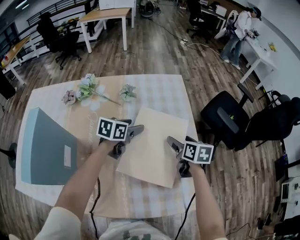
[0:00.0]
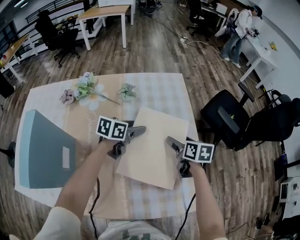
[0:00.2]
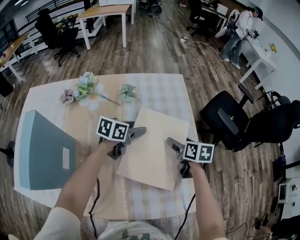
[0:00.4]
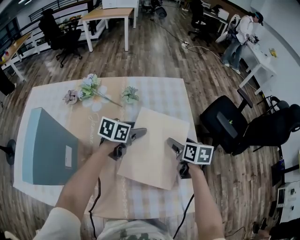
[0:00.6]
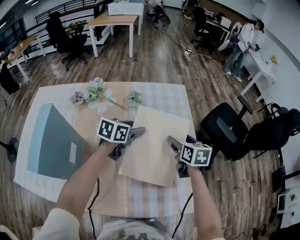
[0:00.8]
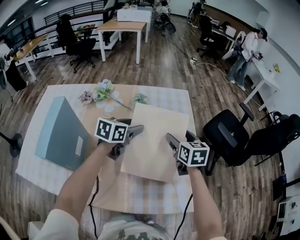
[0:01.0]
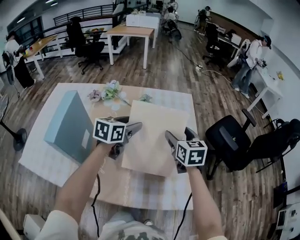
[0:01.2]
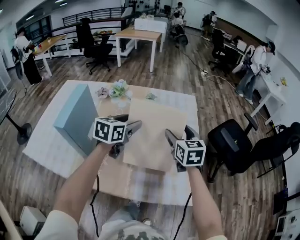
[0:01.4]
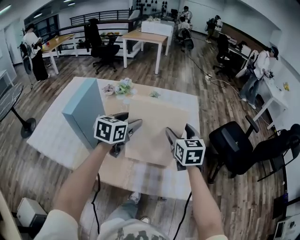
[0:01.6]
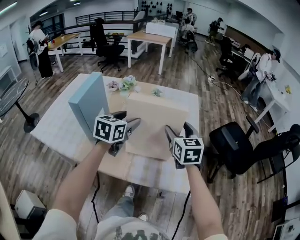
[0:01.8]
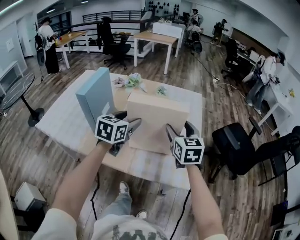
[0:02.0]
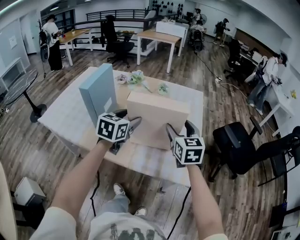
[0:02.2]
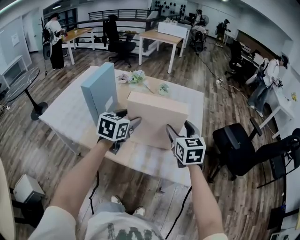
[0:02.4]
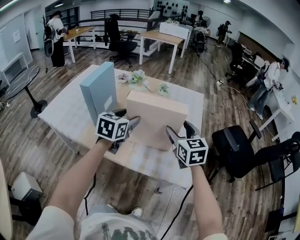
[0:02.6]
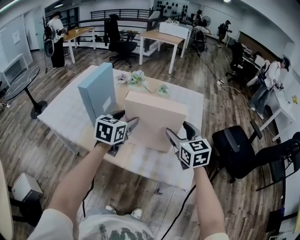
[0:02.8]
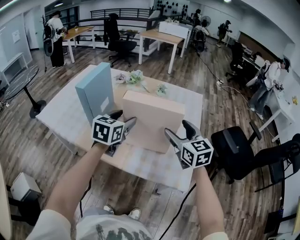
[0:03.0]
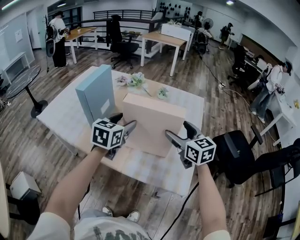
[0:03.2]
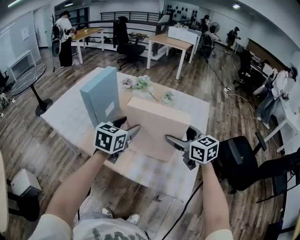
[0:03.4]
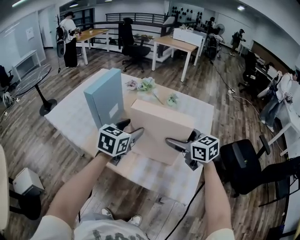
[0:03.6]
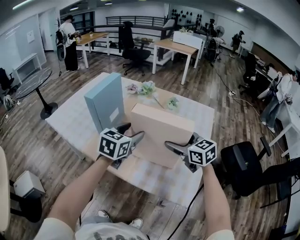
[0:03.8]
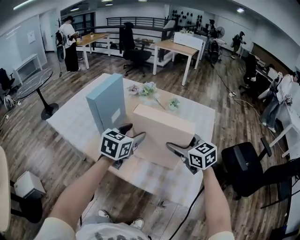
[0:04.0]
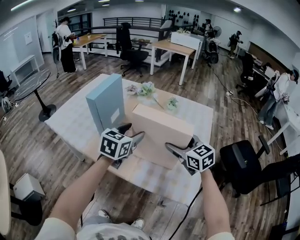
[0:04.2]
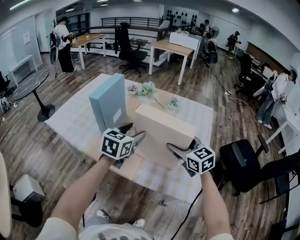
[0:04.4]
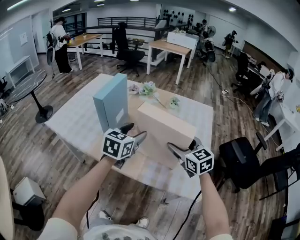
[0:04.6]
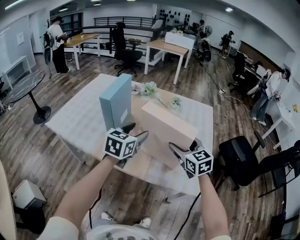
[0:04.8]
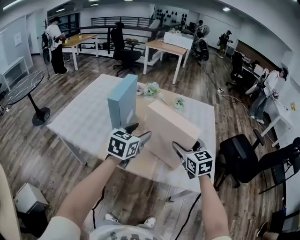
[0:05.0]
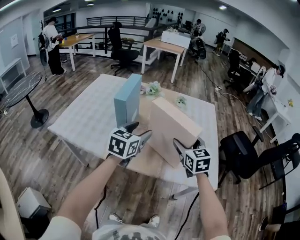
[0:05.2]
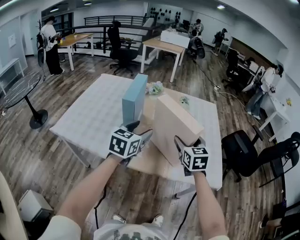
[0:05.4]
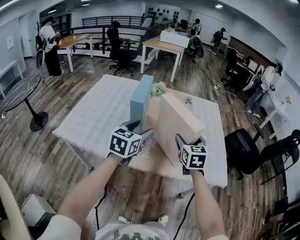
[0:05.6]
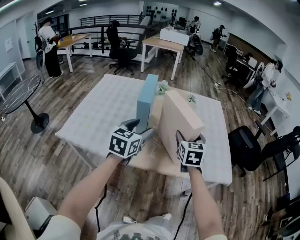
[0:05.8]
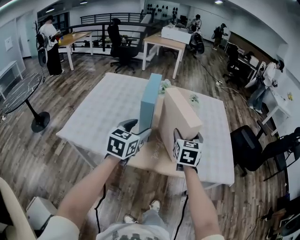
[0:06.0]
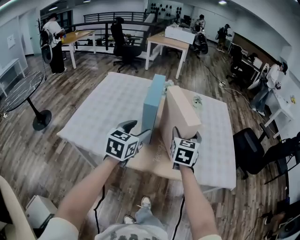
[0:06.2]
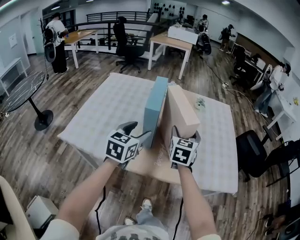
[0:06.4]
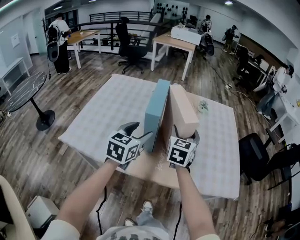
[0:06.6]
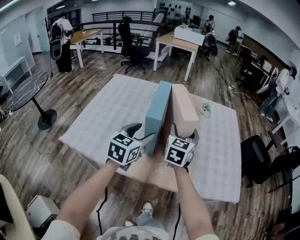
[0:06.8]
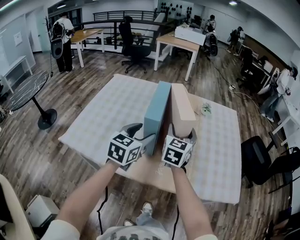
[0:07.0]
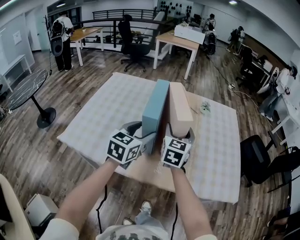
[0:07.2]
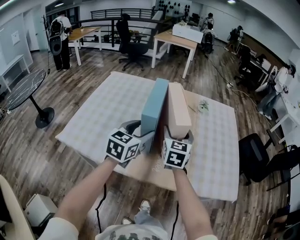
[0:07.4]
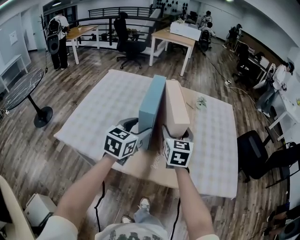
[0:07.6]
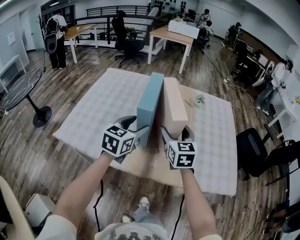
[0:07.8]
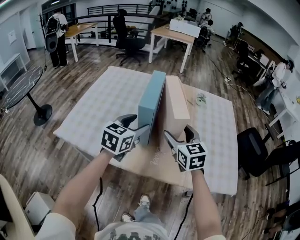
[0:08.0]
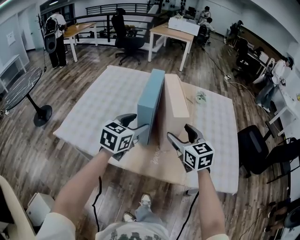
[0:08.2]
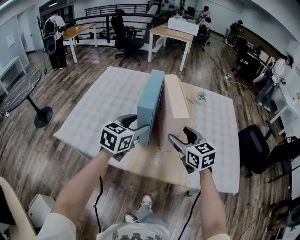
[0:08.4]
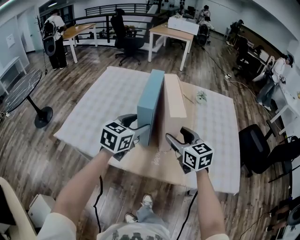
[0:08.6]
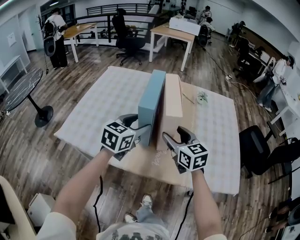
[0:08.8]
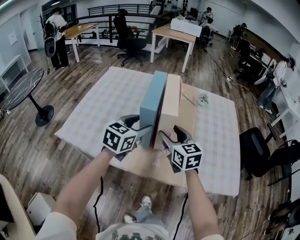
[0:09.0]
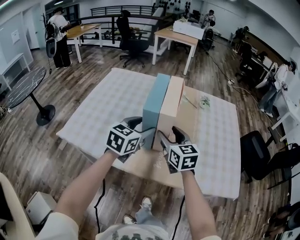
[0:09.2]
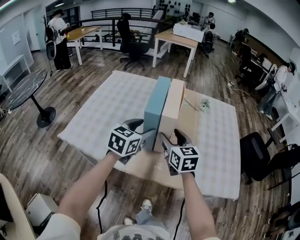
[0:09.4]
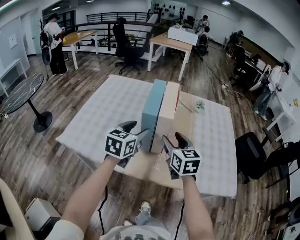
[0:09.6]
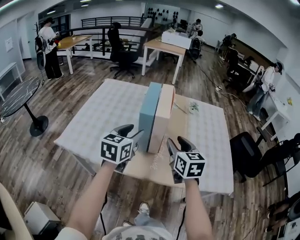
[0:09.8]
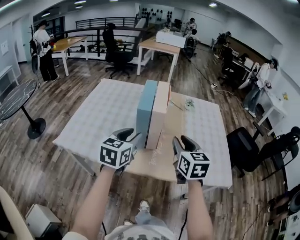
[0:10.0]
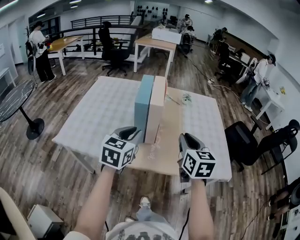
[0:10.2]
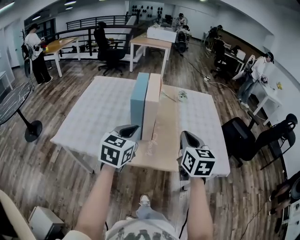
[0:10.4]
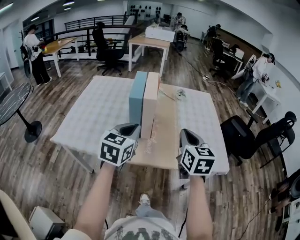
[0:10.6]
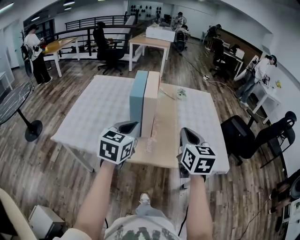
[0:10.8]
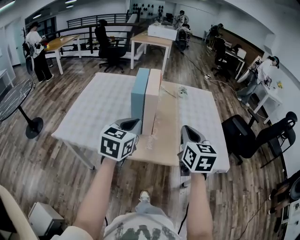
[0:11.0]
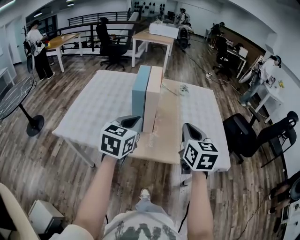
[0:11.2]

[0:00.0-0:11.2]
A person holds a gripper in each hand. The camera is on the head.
0:00.0 to 0:01.6: The right gripper moves upward and backward, roughly 20 cm, and changes its angle by approximately 40 degrees. Meanwhile the left gripper heads backward and upward, covering some 25 cm, and turns by approximately 30 degrees.
0:01.6 to 0:03.2: The left gripper heads backward, covering roughly 10 cm, while the right gripper goes approximately 5 cm backward, and rotates roughly 30 degrees.
0:03.2 to 0:04.8: The left gripper travels to the left by some 5 cm, while the right gripper moves to the left, roughly 10 cm.
0:04.8 to 0:06.4: The grippers both shift to the left by about 20 cm. The right gripper swivels some 40 degrees.
0:06.4 to 0:08.0: The right gripper rotates some 30 degrees.
0:08.0 to 0:09.6: There are only small adjustments of the grippers.
0:09.6 to 0:11.2: The right gripper travels backward, to the right and upward by about 20 cm, and closes its fingers, while the left gripper travels backward and to the right by roughly 15 cm, and closes its fingers.

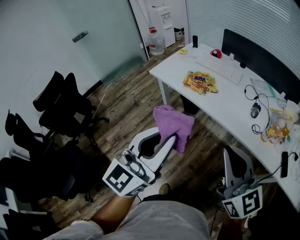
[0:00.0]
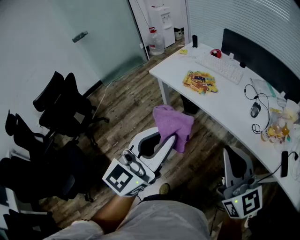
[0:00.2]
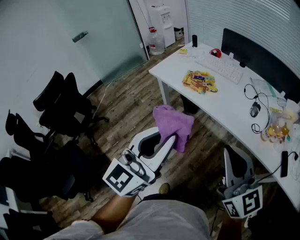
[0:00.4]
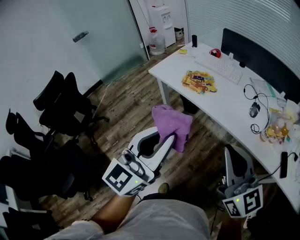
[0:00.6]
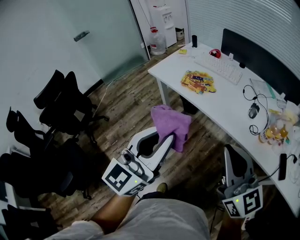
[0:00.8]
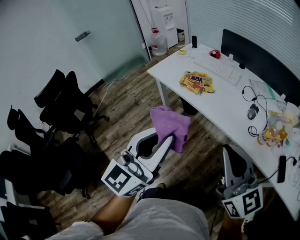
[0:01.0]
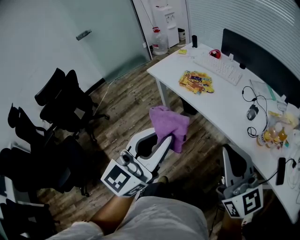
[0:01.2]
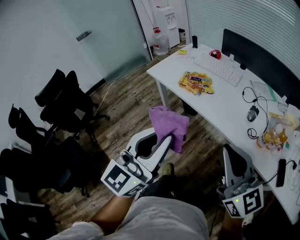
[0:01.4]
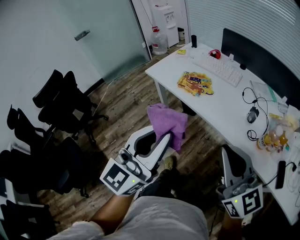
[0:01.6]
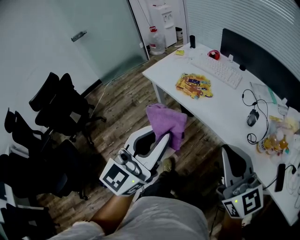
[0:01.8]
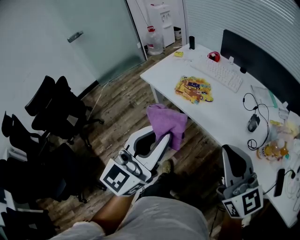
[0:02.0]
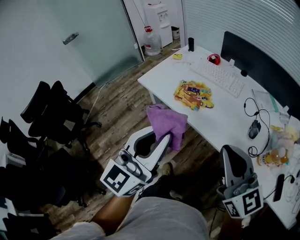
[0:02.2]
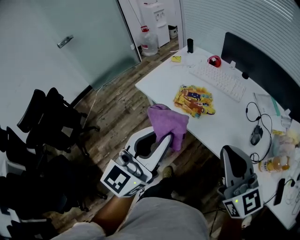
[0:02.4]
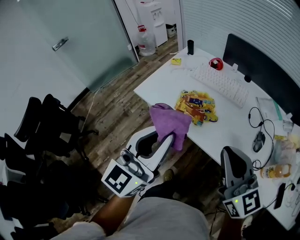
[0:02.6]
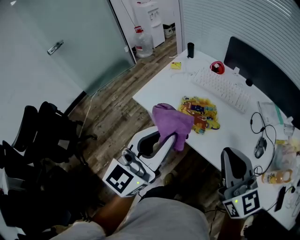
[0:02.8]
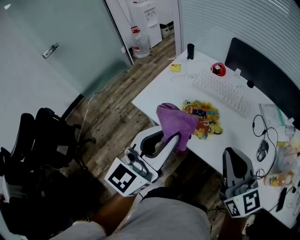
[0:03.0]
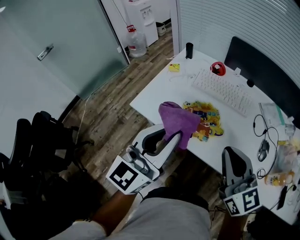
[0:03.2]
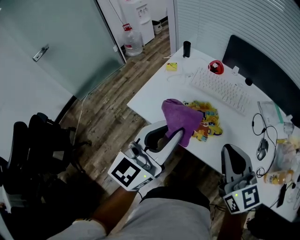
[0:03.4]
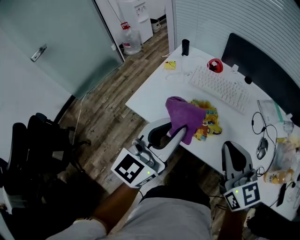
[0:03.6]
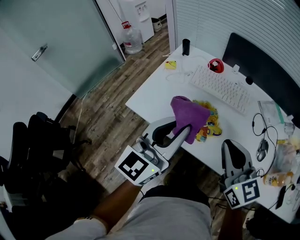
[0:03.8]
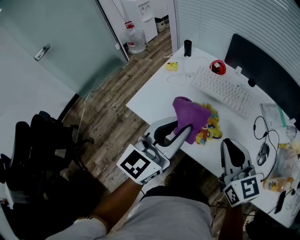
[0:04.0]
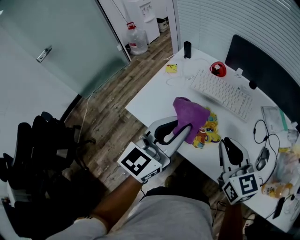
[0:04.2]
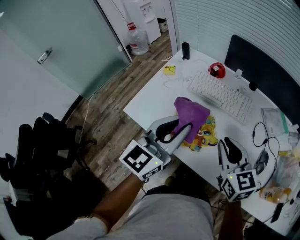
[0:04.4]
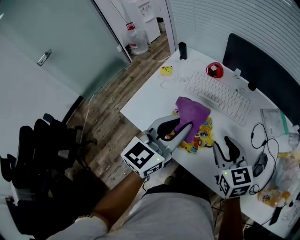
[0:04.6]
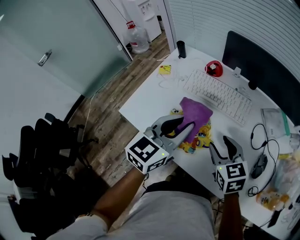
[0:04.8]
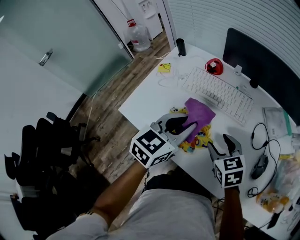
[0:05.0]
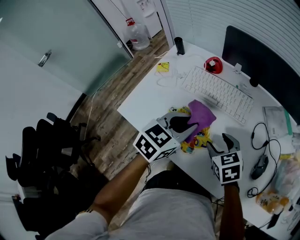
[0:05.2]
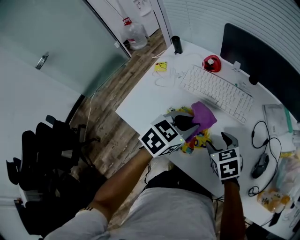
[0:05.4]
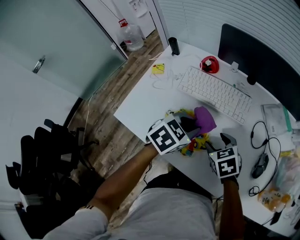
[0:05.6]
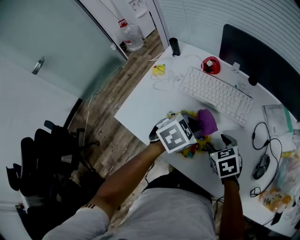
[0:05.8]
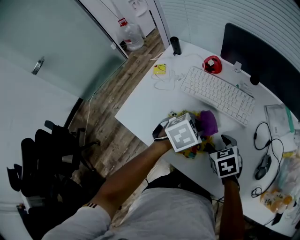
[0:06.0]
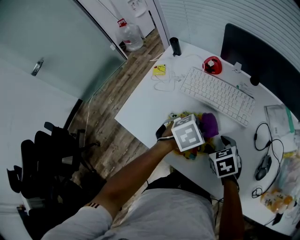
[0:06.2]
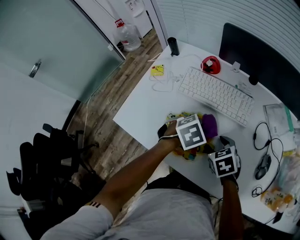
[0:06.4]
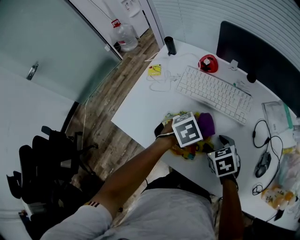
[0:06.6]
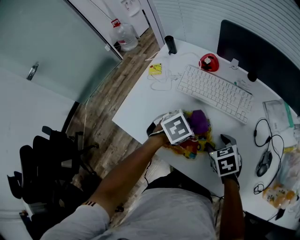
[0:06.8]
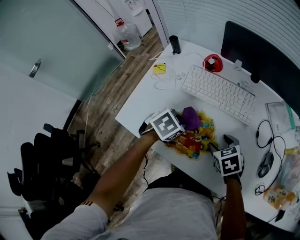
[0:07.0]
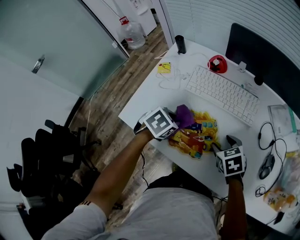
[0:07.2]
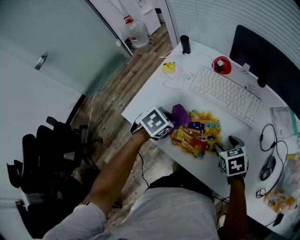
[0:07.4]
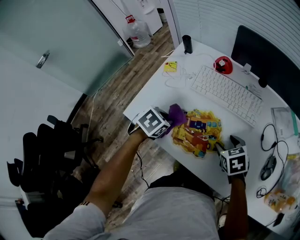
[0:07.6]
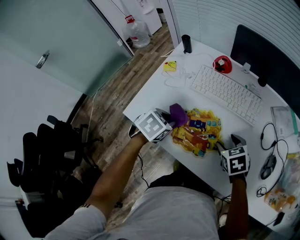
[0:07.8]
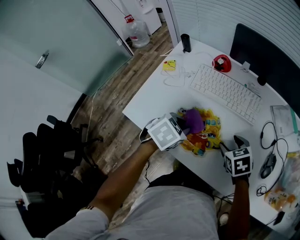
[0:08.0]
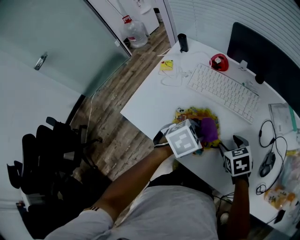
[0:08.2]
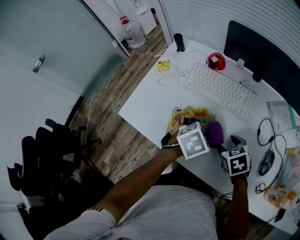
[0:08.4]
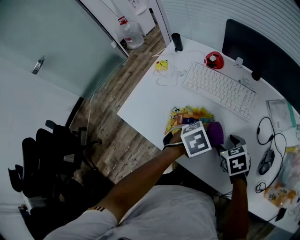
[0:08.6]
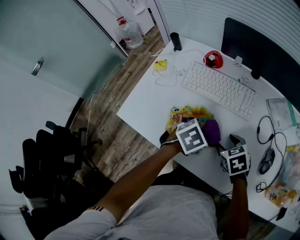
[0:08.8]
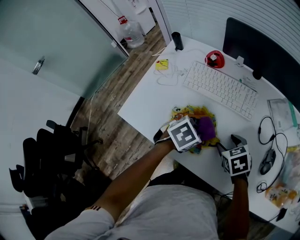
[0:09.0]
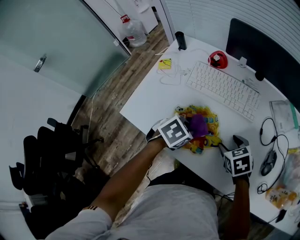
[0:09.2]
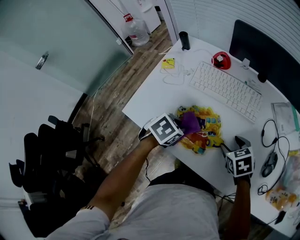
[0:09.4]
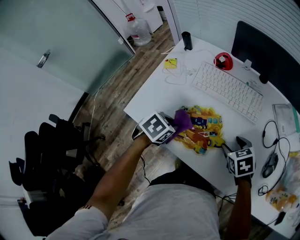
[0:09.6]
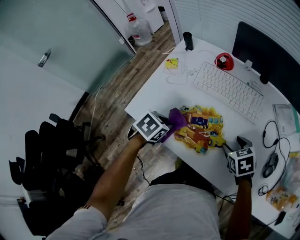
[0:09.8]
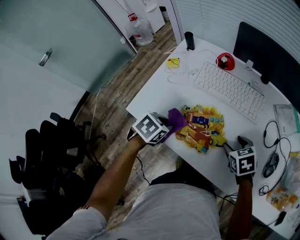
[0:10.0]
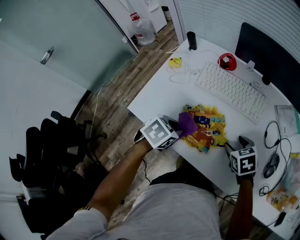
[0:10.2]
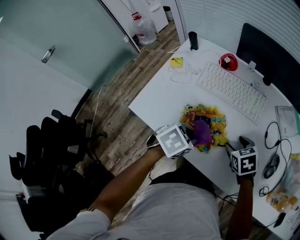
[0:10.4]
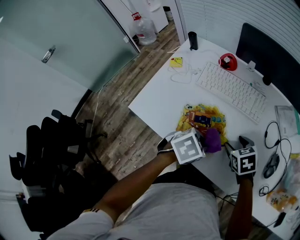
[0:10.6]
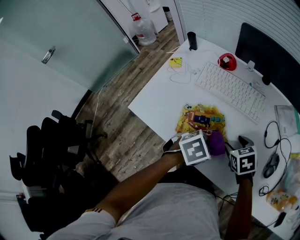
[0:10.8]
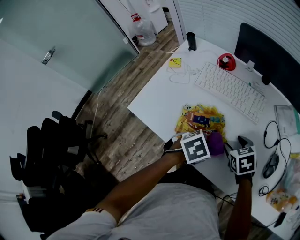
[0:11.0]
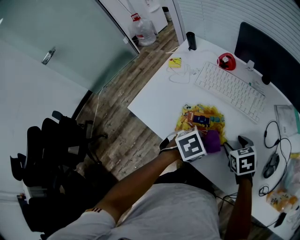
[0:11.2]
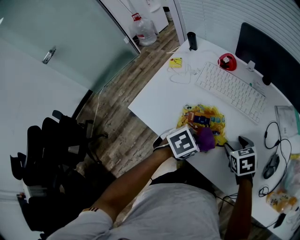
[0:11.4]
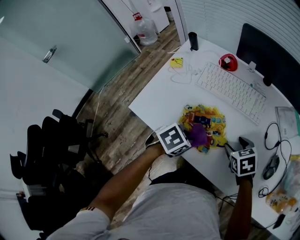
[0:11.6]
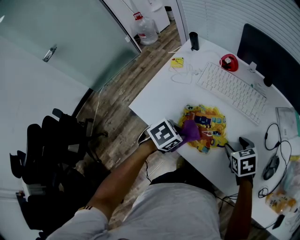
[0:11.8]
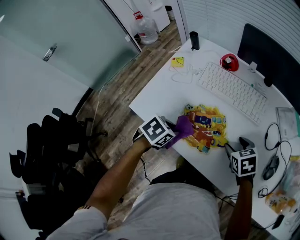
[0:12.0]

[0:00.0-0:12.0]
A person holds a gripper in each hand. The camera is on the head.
0:00.0 to 0:01.6: Both grippers travel together to the right, some 5 cm.
0:01.6 to 0:03.0: Both grippers travel together forward, roughly 30 cm.
0:03.0 to 0:04.4: The right gripper heads forward and downward, covering about 15 cm. The left gripper shifts some 15 cm forward and to the right.
0:04.4 to 0:06.0: The left gripper shifts approximately 25 cm downward, forward and to the right, and points its fingers about 60 degrees further downward. Meanwhile the right gripper shifts roughly 15 cm downward, angles its fingers downward, by roughly 40 degrees, and opens its fingers.
0:06.0 to 0:07.6: The left gripper moves to the left, roughly 20 cm, and turns by about 20 degrees.
0:07.6 to 0:09.0: The left gripper is displaced to the right by approximately 15 cm.
0:09.0 to 0:10.4: The left gripper travels backward by some 5 cm, and reaches roughly 15 cm to the left, then returns.
0:10.4 to 0:12.0: The left gripper moves to the left, roughly 10 cm.
